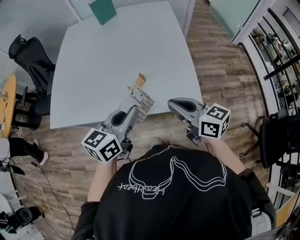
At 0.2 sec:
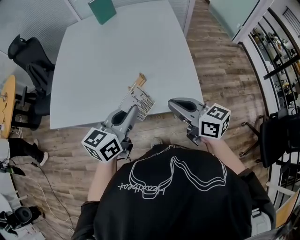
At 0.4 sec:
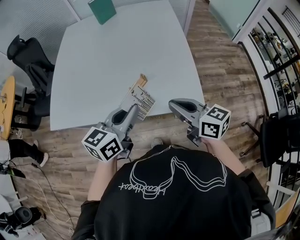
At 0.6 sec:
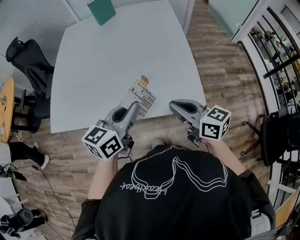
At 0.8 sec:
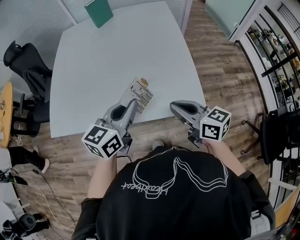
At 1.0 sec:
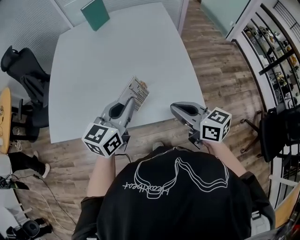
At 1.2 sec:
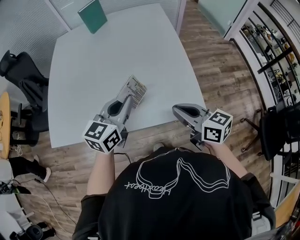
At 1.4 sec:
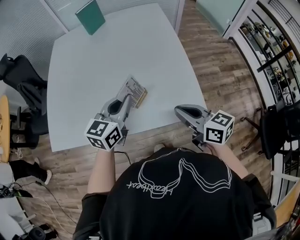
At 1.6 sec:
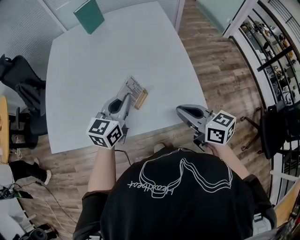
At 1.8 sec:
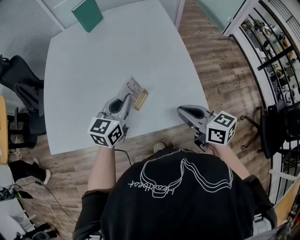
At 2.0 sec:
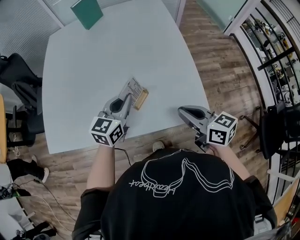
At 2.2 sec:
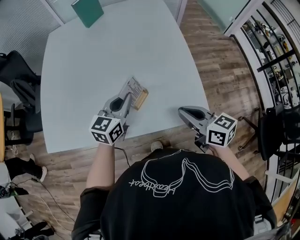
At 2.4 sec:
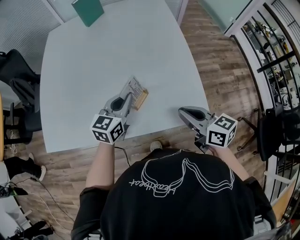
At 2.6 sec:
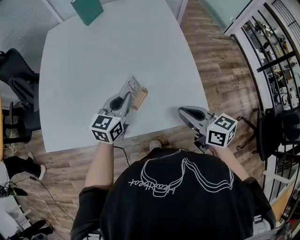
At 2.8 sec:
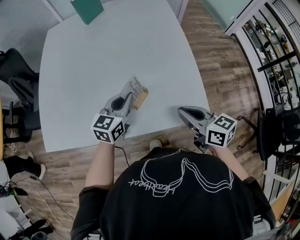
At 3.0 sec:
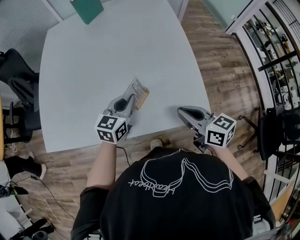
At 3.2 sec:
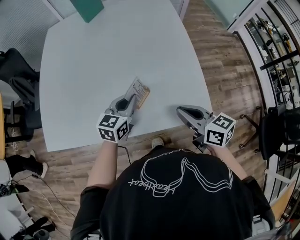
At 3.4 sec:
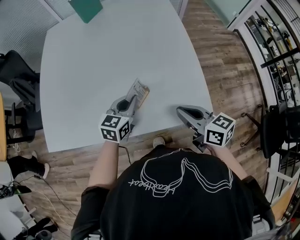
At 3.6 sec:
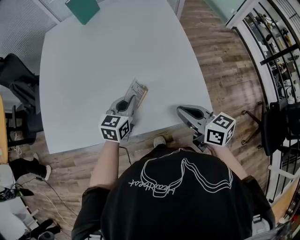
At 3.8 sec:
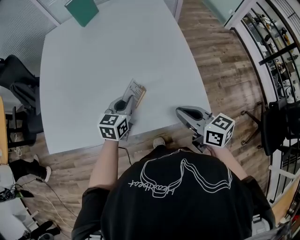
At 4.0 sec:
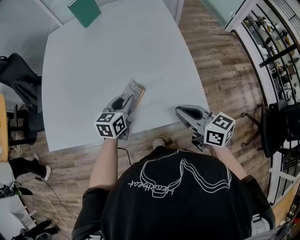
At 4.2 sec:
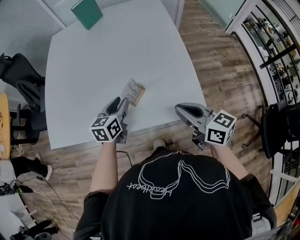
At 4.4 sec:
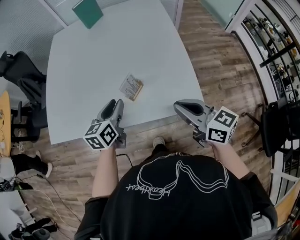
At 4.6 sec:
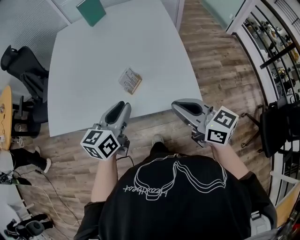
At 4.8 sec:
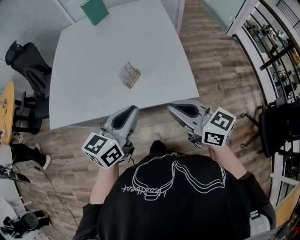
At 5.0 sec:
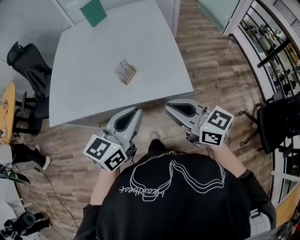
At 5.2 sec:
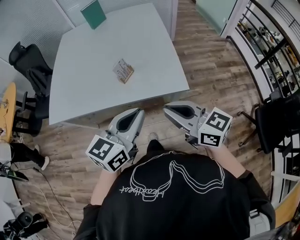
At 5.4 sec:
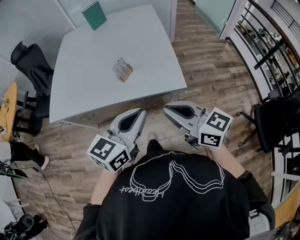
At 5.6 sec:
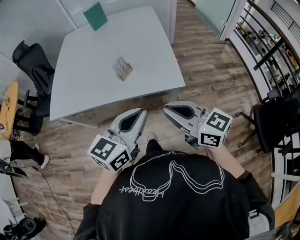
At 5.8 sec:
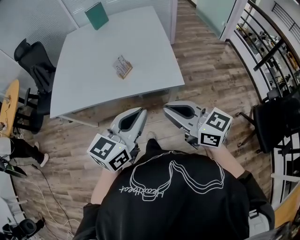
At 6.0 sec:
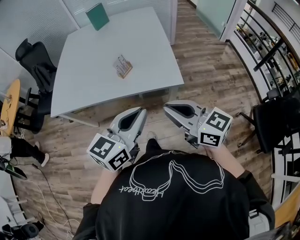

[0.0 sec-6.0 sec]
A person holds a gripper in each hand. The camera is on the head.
0.0 sec to 1.6 sec: The right gripper travels forward by roughly 5 cm. The left gripper goes roughly 15 cm forward.
1.6 sec to 3.0 sec: The right gripper ends up approximately 5 cm from where it was, while the left gripper shifts some 10 cm downward.
3.0 sec to 4.4 sec: The right gripper shifts approximately 10 cm upward and backward. Meanwhile the left gripper travels backward by approximately 5 cm, rotates some 20 degrees, and opens.
4.4 sec to 6.0 sec: The left gripper heads backward, upward and to the right, covering roughly 40 cm, changes its angle by about 30 degrees, and closes. The right gripper is displaced backward by some 25 cm.

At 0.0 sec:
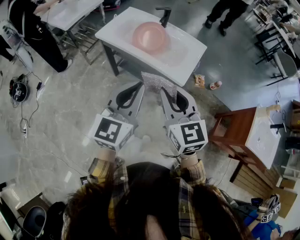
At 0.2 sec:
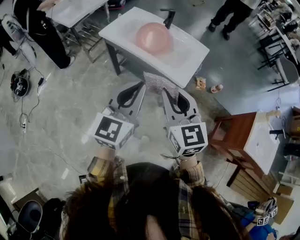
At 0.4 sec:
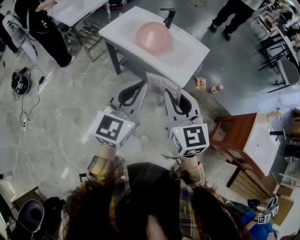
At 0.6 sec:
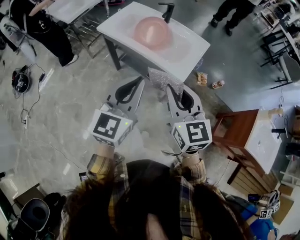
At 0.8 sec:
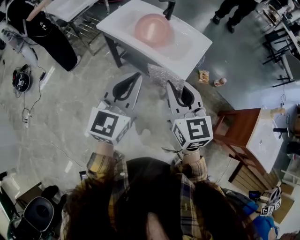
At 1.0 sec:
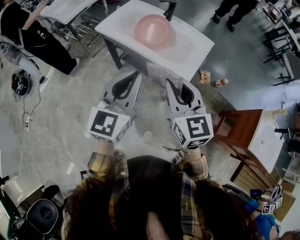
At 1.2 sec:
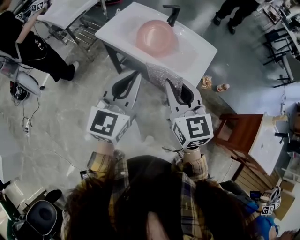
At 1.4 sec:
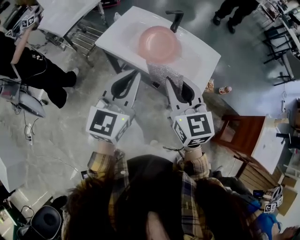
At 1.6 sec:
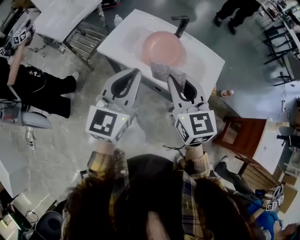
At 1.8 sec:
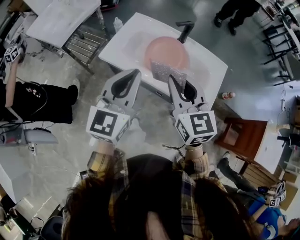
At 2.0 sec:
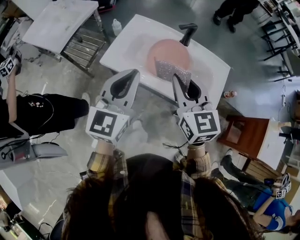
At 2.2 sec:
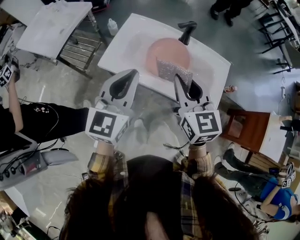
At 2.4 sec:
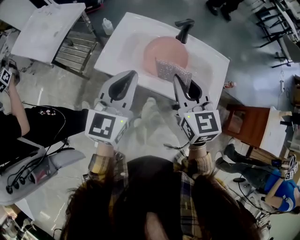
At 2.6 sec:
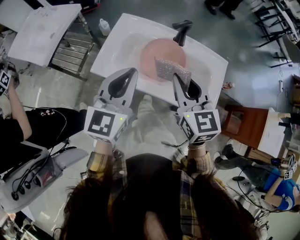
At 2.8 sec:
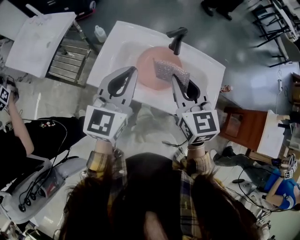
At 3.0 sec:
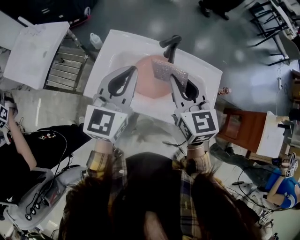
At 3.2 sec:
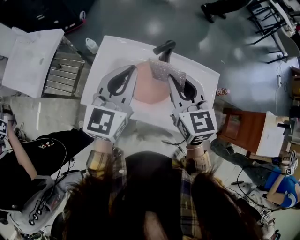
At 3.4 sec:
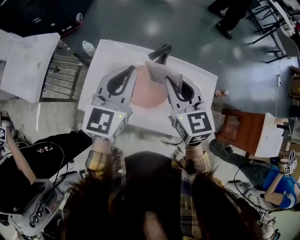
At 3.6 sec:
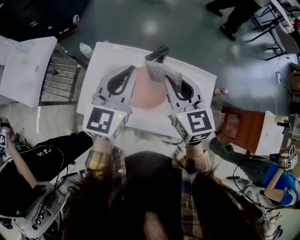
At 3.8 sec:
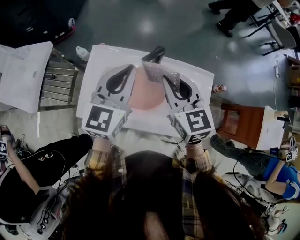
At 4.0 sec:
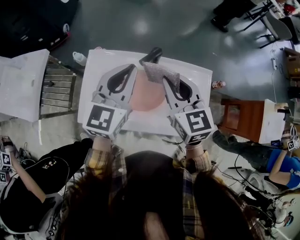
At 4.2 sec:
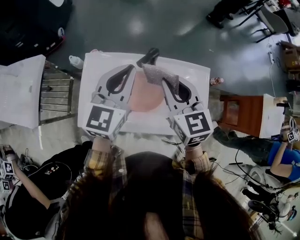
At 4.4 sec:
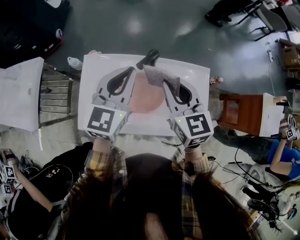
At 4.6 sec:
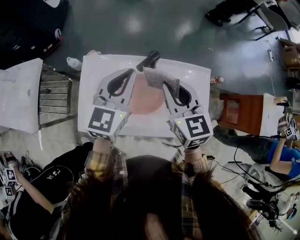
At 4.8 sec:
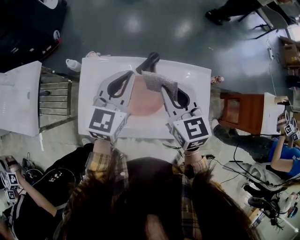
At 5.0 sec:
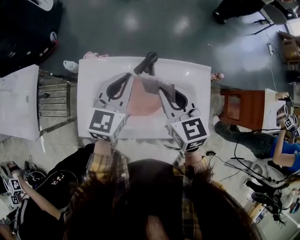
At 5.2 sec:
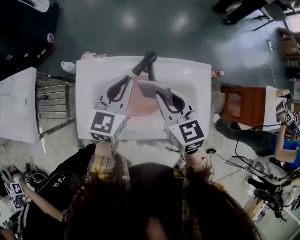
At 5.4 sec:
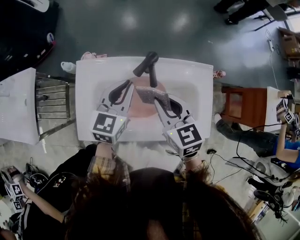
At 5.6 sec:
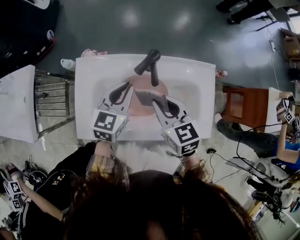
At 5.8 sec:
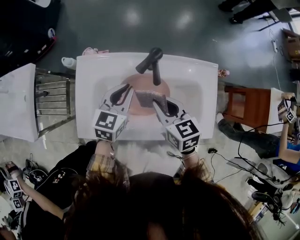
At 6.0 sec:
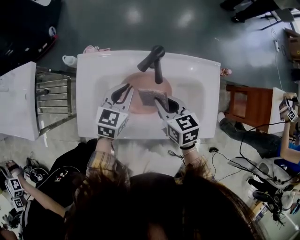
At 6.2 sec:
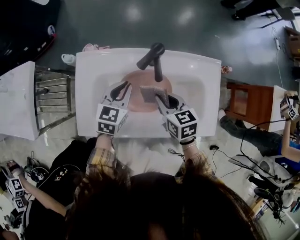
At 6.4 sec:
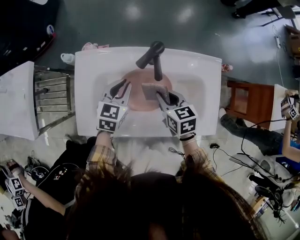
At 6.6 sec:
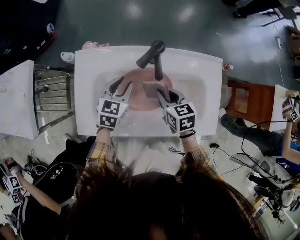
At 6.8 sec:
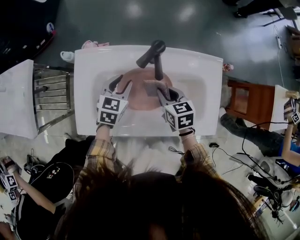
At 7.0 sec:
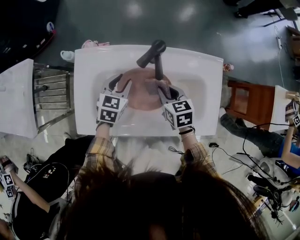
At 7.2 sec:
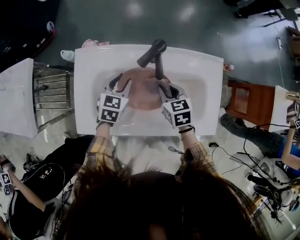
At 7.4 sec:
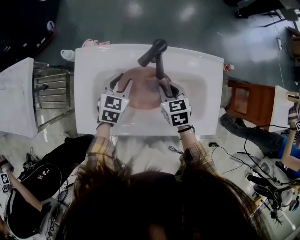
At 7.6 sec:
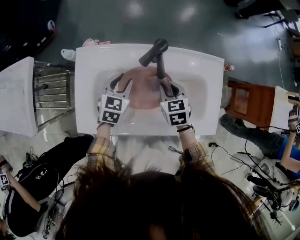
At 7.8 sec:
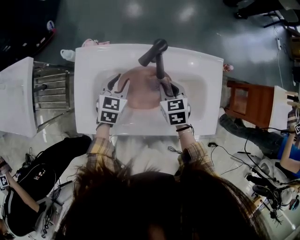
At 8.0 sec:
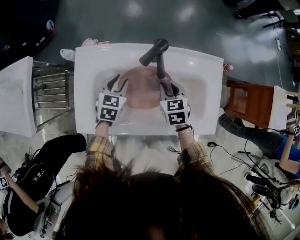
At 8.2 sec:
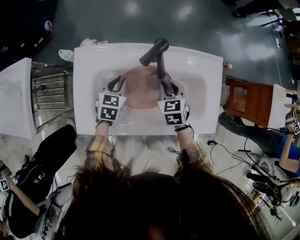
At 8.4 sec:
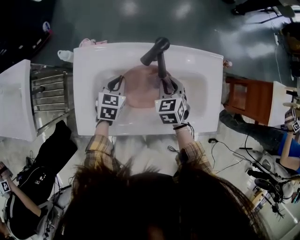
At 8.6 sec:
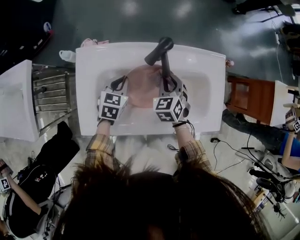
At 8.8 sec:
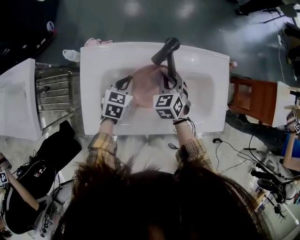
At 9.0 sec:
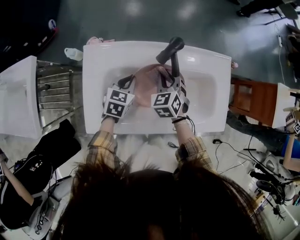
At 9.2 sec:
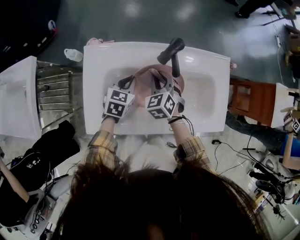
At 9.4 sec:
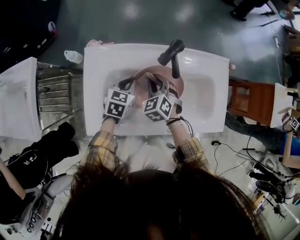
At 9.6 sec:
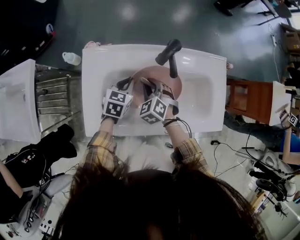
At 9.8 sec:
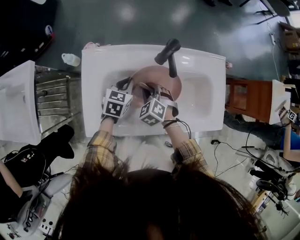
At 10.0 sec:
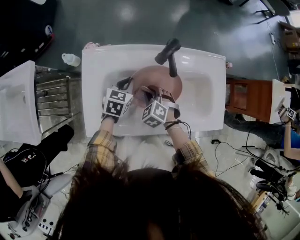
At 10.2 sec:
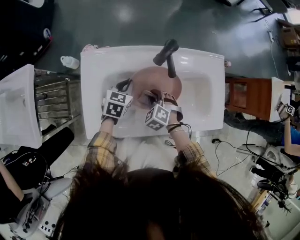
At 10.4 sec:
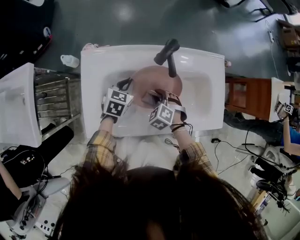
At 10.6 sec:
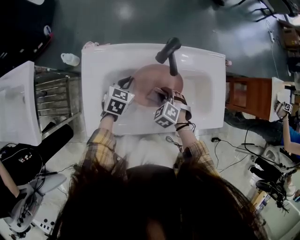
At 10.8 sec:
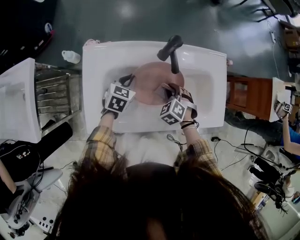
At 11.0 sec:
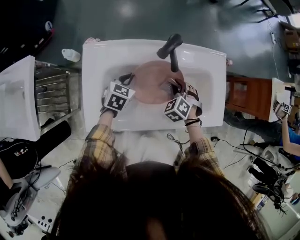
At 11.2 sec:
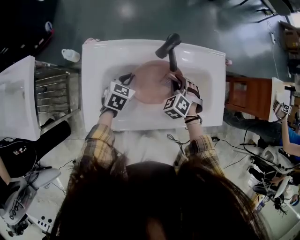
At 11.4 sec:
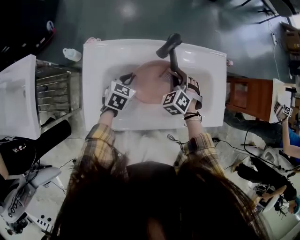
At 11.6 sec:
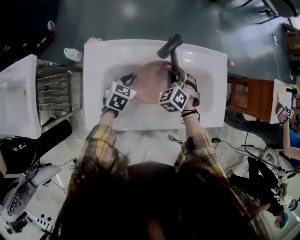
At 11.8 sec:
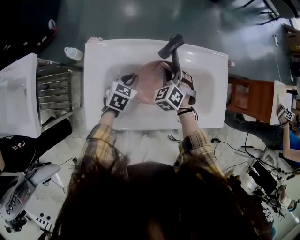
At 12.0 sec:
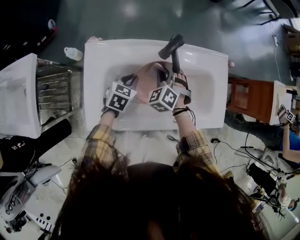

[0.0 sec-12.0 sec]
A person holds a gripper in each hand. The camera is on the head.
0.0 sec to 1.6 sec: The right gripper is displaced forward by roughly 20 cm. The left gripper shifts about 25 cm forward and to the left.
1.6 sec to 3.0 sec: Both grippers move forward, approximately 25 cm.
3.0 sec to 4.4 sec: The right gripper is displaced forward by approximately 10 cm. The left gripper is displaced forward and to the right by roughly 15 cm.
4.4 sec to 6.0 sec: The two grippers go about 20 cm downward. The right gripper changes its angle by roughly 30 degrees; the left gripper swivels about 20 degrees.
6.0 sec to 7.6 sec: The two grippers go about 5 cm downward. The left gripper opens up.
7.6 sec to 9.0 sec: The left gripper closes up. Meanwhile the right gripper travels to the left by roughly 5 cm, and turns by some 20 degrees.
9.0 sec to 10.4 sec: The right gripper heads backward and downward, covering about 10 cm, and swivels roughly 30 degrees.
10.4 sec to 12.0 sec: The right gripper shifts some 10 cm forward and upward, and turns by some 20 degrees.

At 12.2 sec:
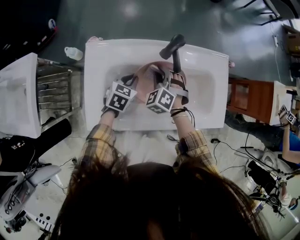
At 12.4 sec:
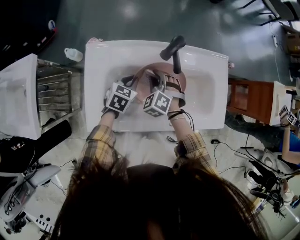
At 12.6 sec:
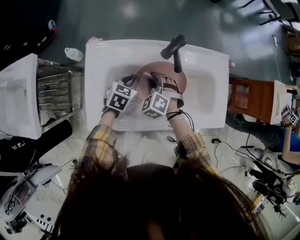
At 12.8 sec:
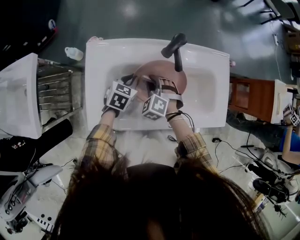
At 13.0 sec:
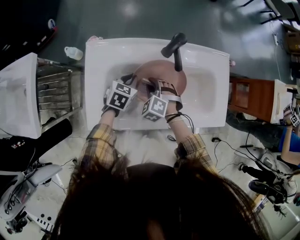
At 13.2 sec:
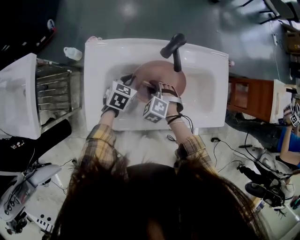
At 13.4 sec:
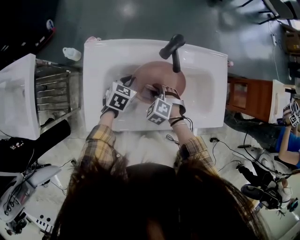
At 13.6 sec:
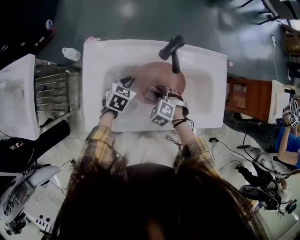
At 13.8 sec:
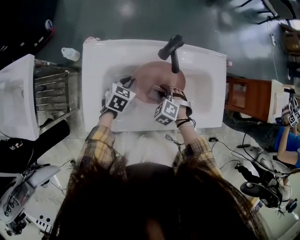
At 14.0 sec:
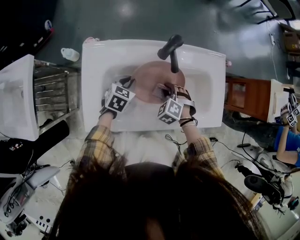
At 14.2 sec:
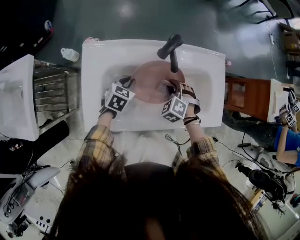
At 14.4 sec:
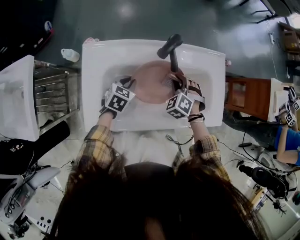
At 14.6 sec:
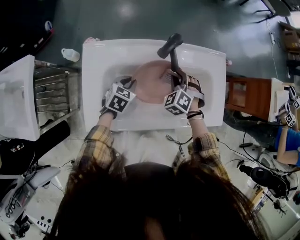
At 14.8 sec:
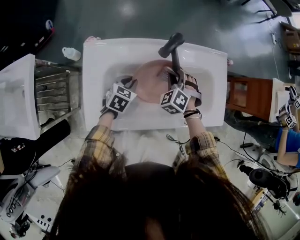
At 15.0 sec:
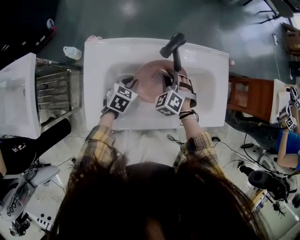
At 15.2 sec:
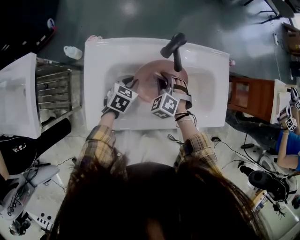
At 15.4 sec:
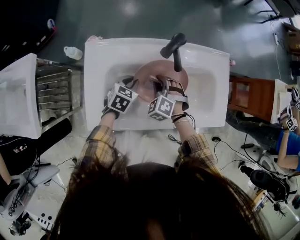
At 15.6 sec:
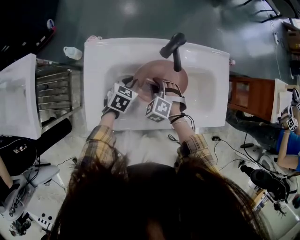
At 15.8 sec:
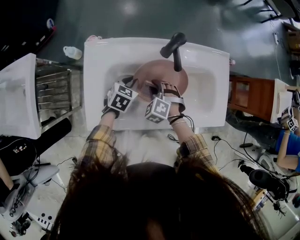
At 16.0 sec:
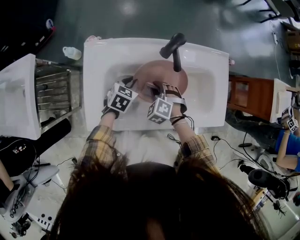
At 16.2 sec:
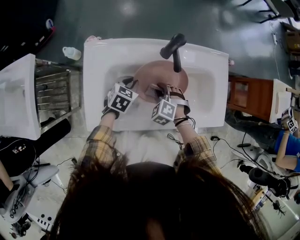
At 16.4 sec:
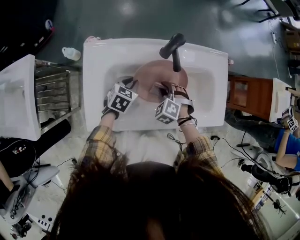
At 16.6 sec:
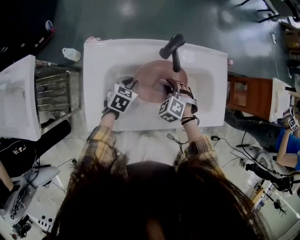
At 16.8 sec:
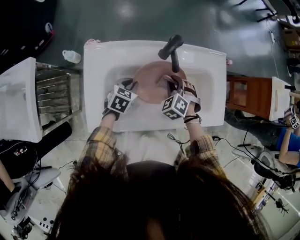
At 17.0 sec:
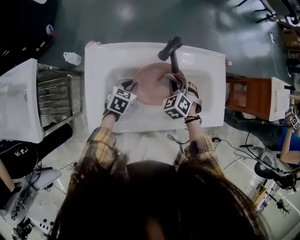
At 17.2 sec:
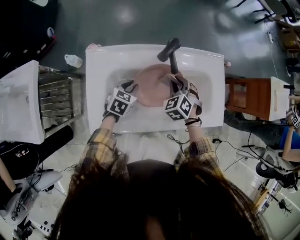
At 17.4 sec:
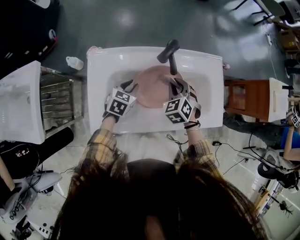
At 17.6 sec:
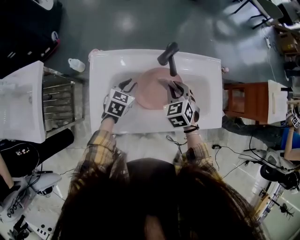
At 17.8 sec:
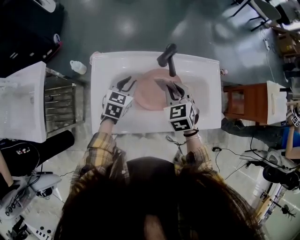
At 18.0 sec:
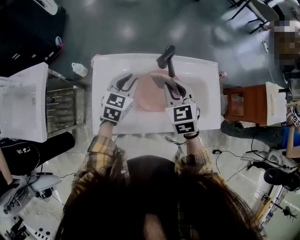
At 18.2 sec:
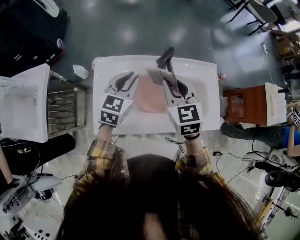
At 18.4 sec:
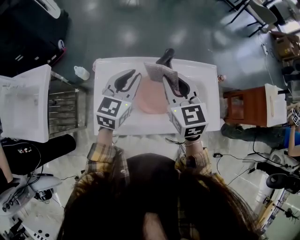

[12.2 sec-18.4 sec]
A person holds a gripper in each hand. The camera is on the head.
12.2 sec to 13.8 sec: The right gripper goes about 10 cm backward, downward and to the right.
13.8 sec to 15.4 sec: The right gripper travels to the left by some 5 cm, and moves approximately 10 cm forward and comes back.
15.4 sec to 16.8 sec: The right gripper travels to the right by about 5 cm.
16.8 sec to 18.4 sec: Both grippers move upward, about 25 cm. The left gripper points its fingers some 40 degrees further upward. The right gripper points its fingers some 30 degrees further upward.
